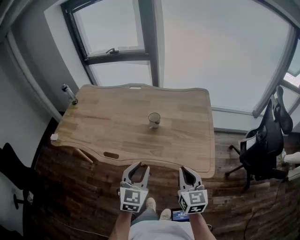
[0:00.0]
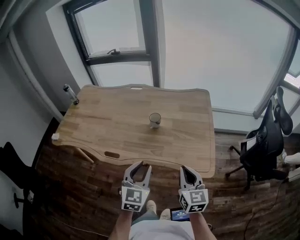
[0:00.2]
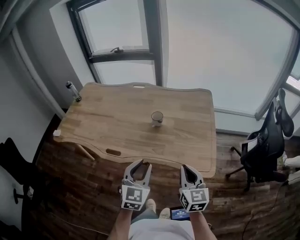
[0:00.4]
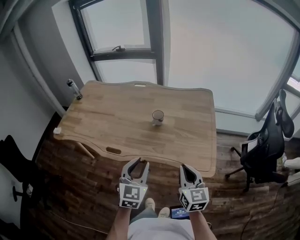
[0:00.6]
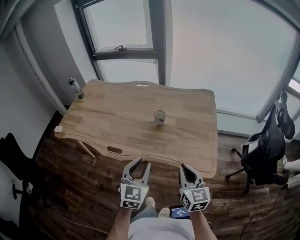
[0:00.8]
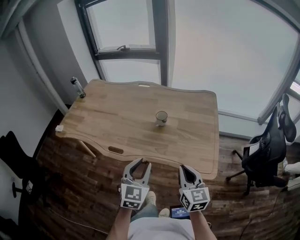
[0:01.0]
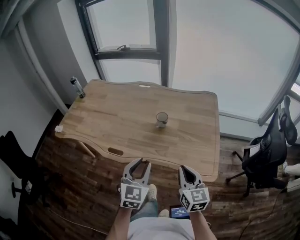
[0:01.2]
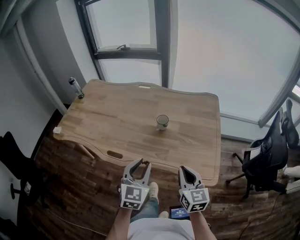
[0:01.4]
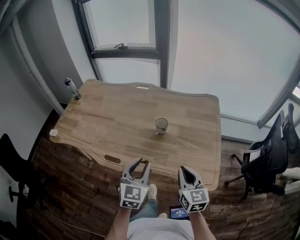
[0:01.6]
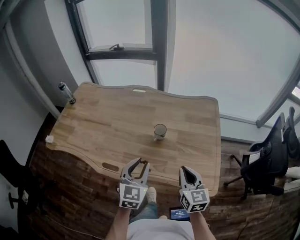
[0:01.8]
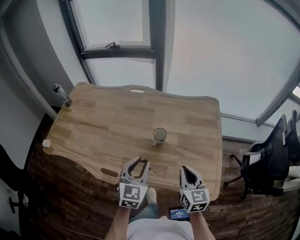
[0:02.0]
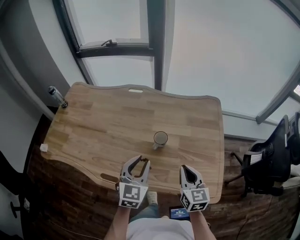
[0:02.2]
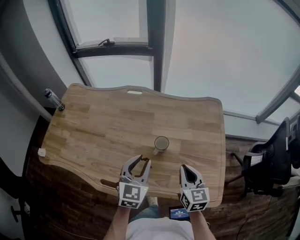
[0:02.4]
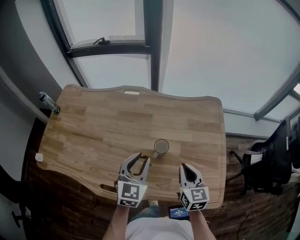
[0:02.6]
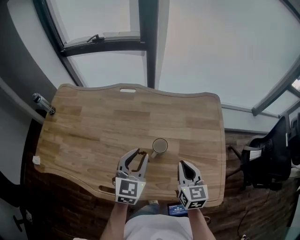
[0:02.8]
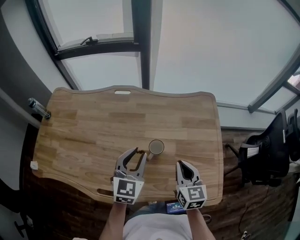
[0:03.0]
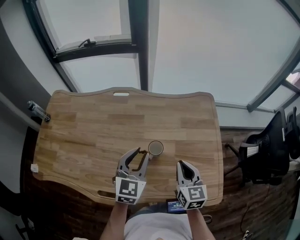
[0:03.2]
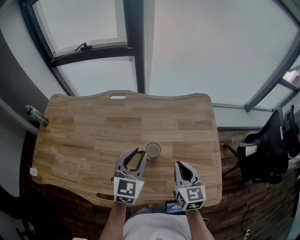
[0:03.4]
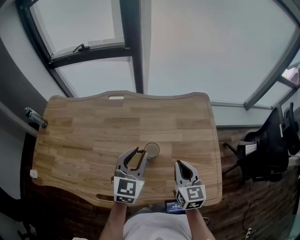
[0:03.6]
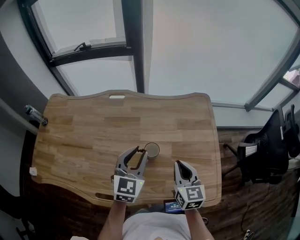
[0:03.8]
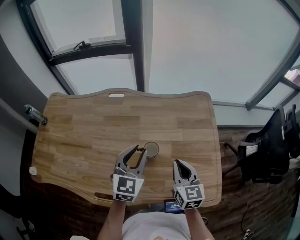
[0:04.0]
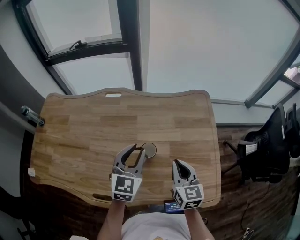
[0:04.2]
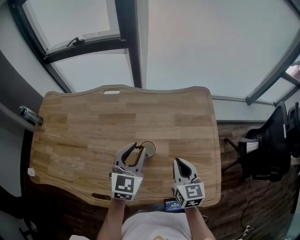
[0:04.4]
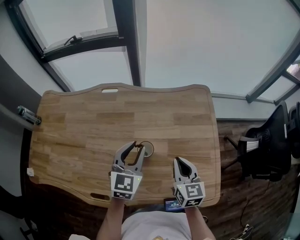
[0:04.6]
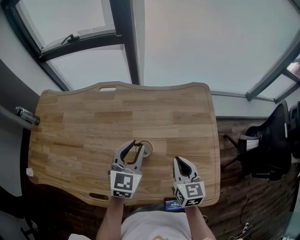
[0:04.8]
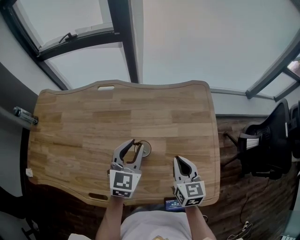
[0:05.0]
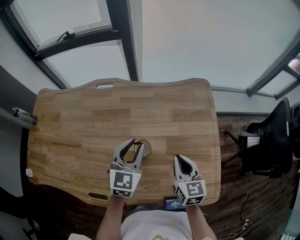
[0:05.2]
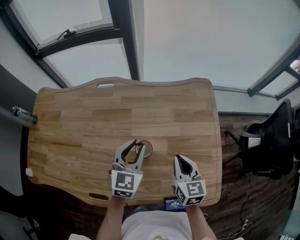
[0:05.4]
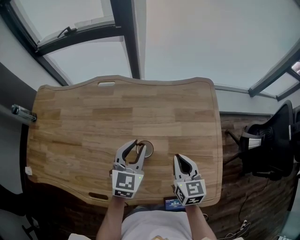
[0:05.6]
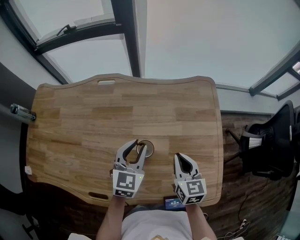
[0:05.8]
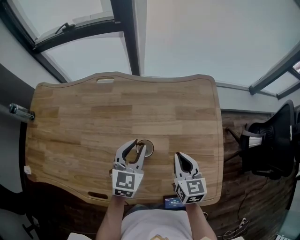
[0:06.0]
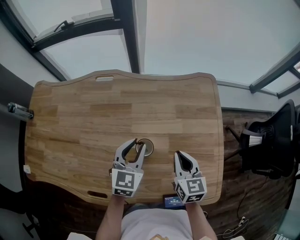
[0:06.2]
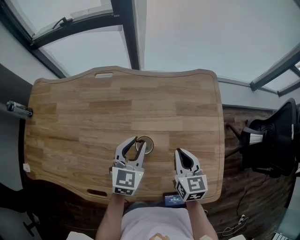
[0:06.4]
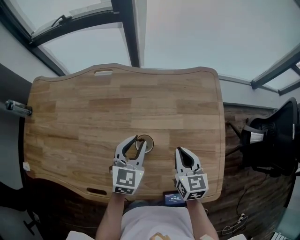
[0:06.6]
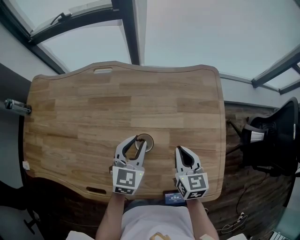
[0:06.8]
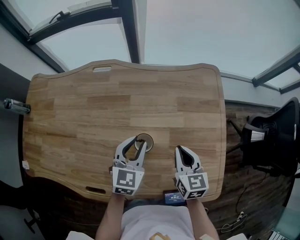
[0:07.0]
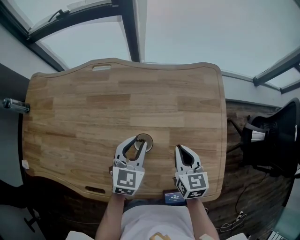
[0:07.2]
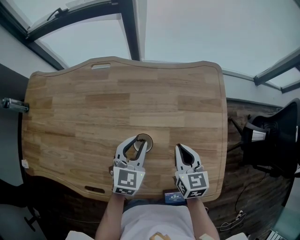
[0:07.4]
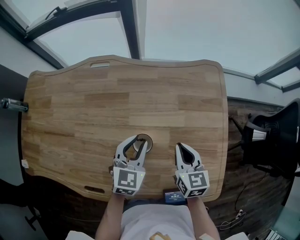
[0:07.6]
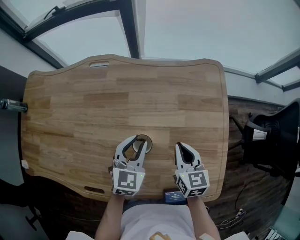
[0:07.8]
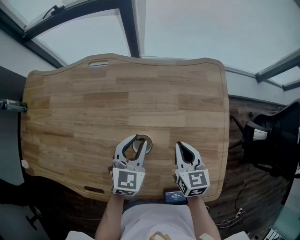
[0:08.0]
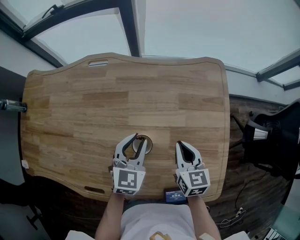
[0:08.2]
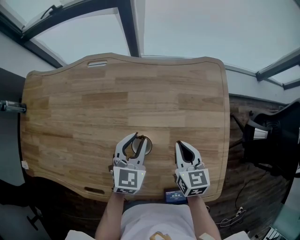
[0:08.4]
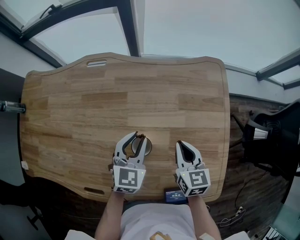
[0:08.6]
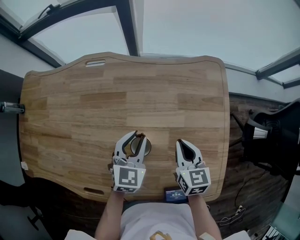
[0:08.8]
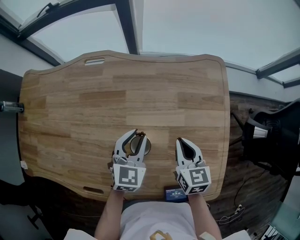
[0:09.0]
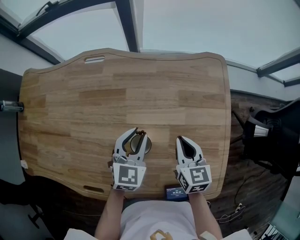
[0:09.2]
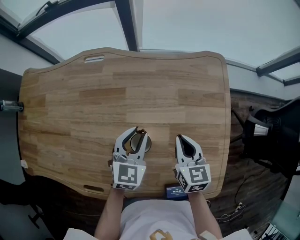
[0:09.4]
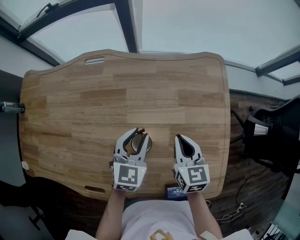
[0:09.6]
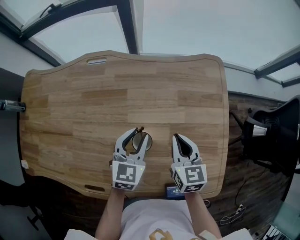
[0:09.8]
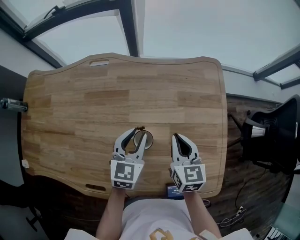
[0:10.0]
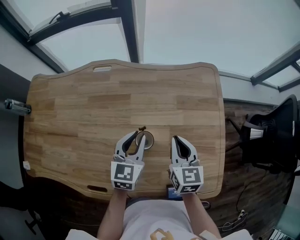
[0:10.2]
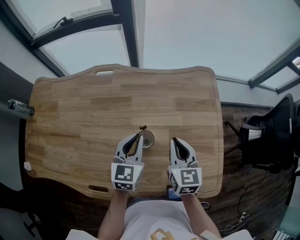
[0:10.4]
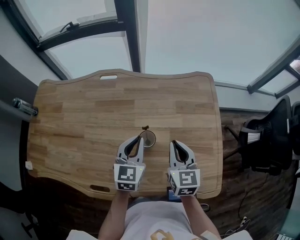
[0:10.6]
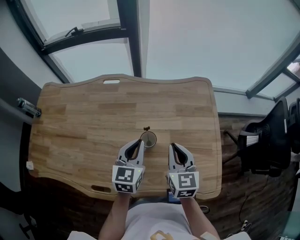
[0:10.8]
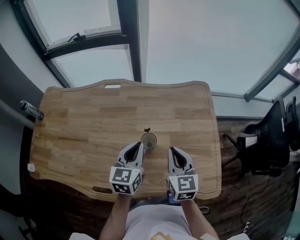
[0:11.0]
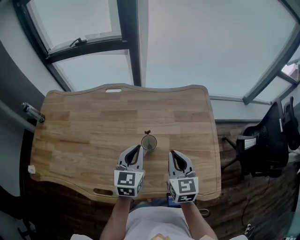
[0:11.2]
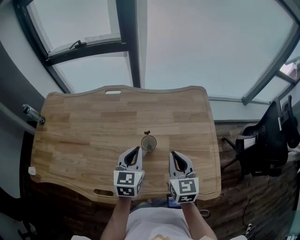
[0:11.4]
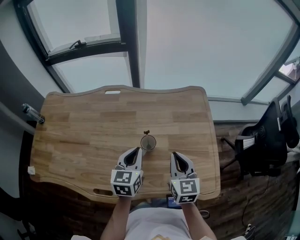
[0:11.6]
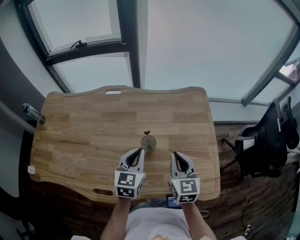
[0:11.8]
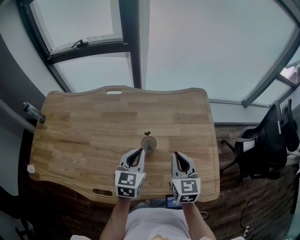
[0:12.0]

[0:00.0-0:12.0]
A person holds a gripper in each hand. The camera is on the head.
0:00.0 to 0:01.6: The two grippers go about 5 cm forward.
0:01.6 to 0:03.0: The grippers both shift forward by approximately 25 cm.
0:03.0 to 0:04.4: The left gripper moves roughly 5 cm.
0:04.4 to 0:06.0: The right gripper shifts by about 5 cm. Meanwhile the left gripper shifts roughly 5 cm downward.
0:06.0 to 0:07.6: The grippers move only a little.
0:07.6 to 0:09.0: The grippers make only small movements.
0:09.0 to 0:10.4: The two grippers go about 5 cm upward. The left gripper closes up.
0:10.4 to 0:12.0: The right gripper goes some 10 cm backward and upward; the left gripper goes about 5 cm backward.

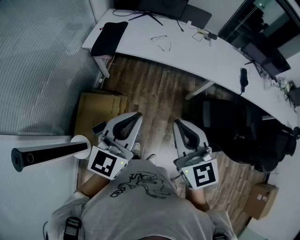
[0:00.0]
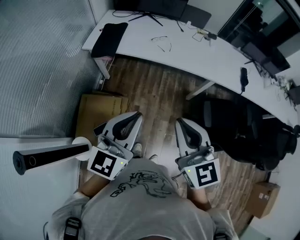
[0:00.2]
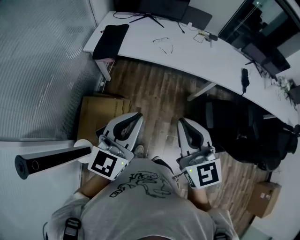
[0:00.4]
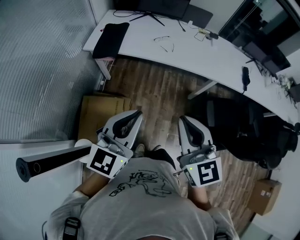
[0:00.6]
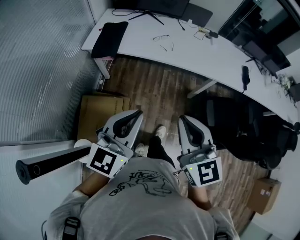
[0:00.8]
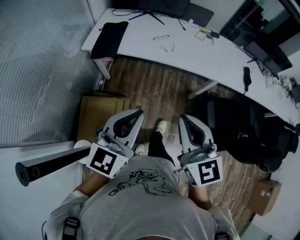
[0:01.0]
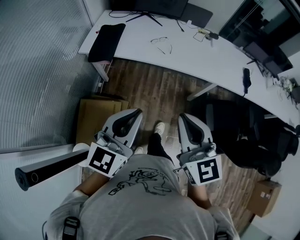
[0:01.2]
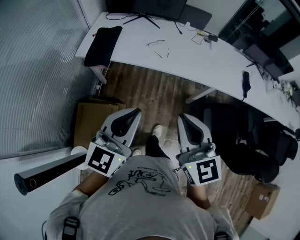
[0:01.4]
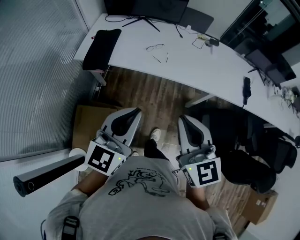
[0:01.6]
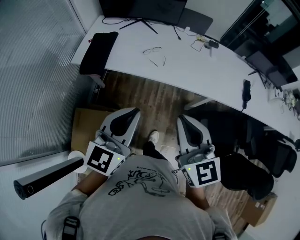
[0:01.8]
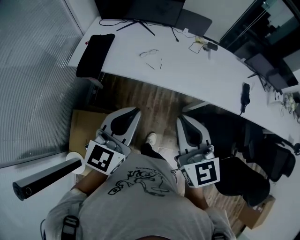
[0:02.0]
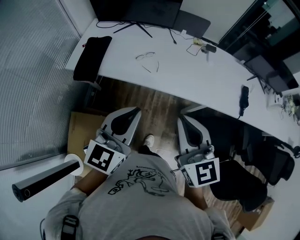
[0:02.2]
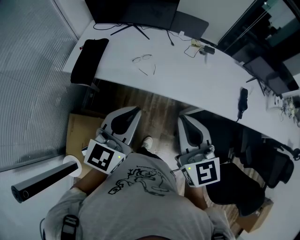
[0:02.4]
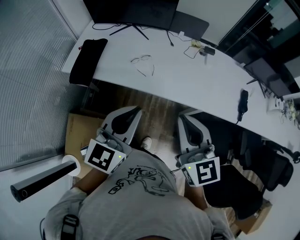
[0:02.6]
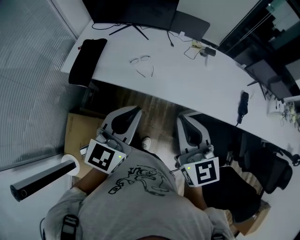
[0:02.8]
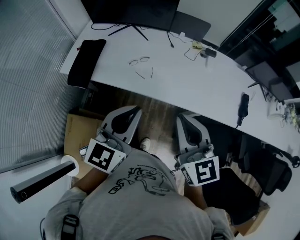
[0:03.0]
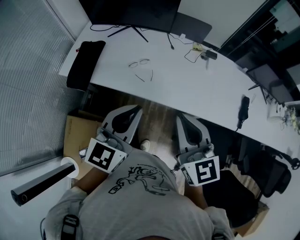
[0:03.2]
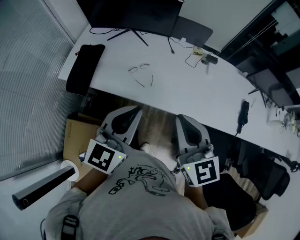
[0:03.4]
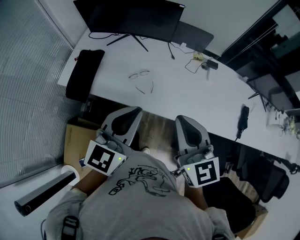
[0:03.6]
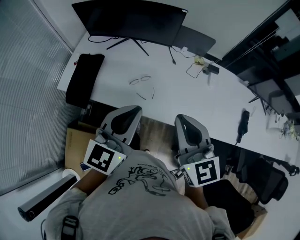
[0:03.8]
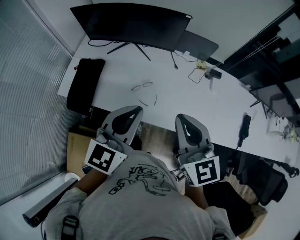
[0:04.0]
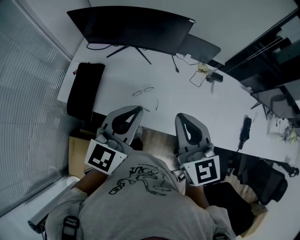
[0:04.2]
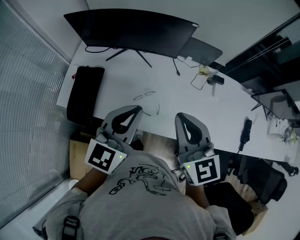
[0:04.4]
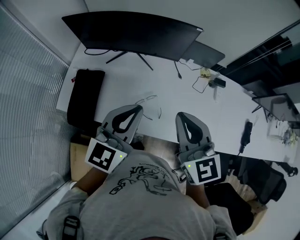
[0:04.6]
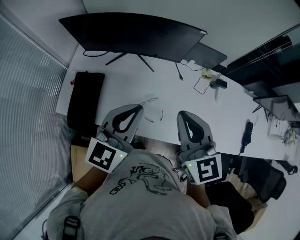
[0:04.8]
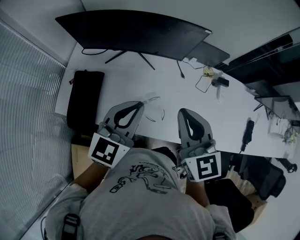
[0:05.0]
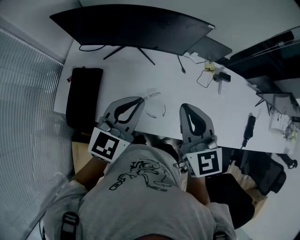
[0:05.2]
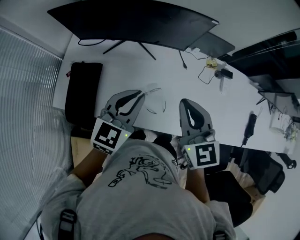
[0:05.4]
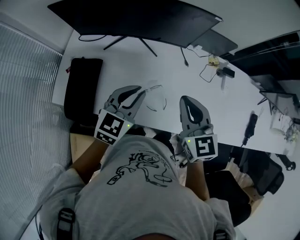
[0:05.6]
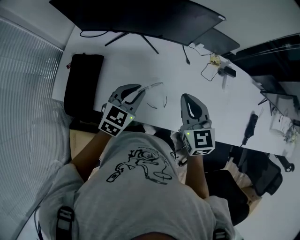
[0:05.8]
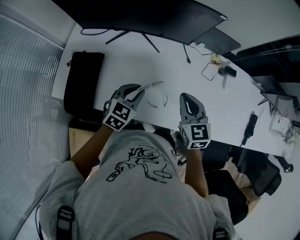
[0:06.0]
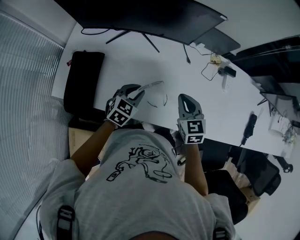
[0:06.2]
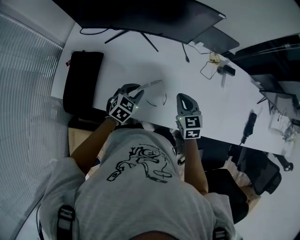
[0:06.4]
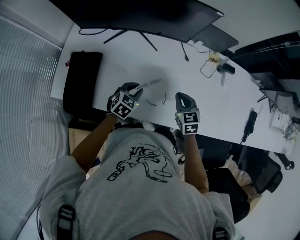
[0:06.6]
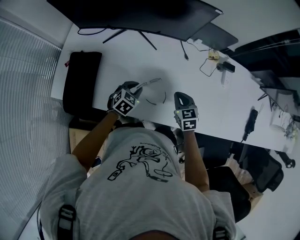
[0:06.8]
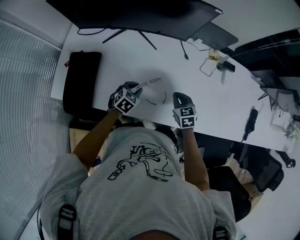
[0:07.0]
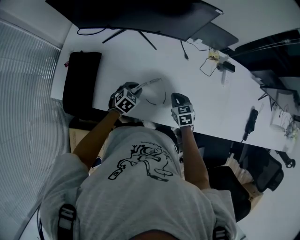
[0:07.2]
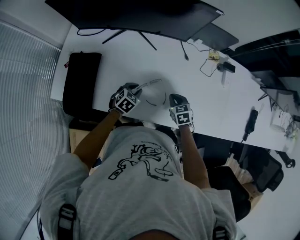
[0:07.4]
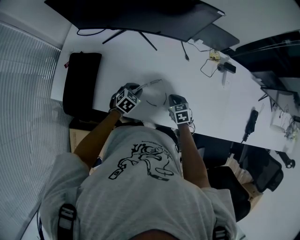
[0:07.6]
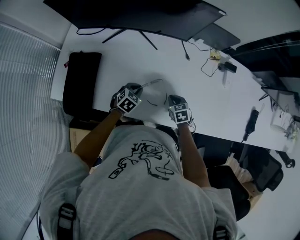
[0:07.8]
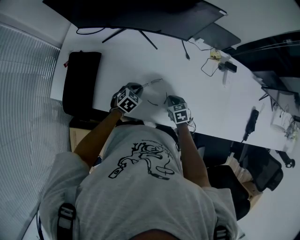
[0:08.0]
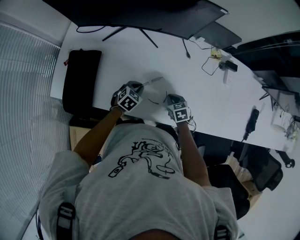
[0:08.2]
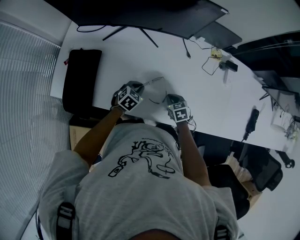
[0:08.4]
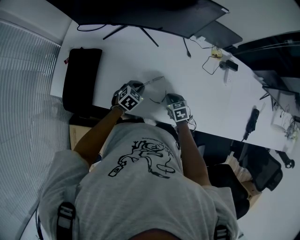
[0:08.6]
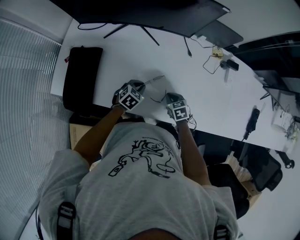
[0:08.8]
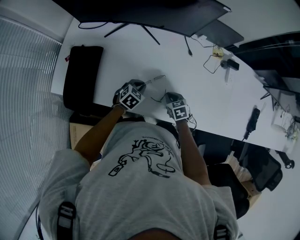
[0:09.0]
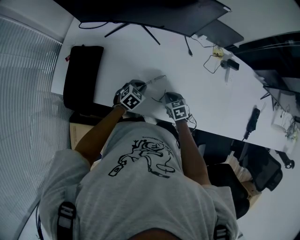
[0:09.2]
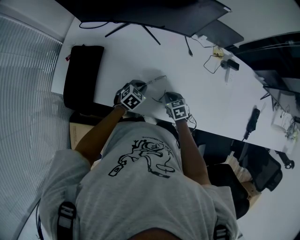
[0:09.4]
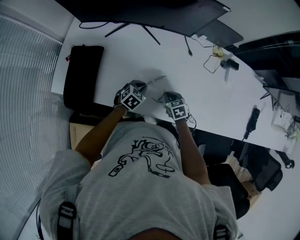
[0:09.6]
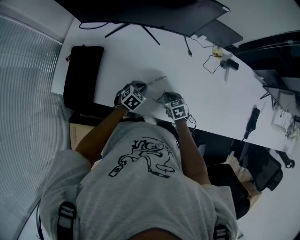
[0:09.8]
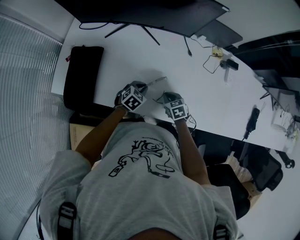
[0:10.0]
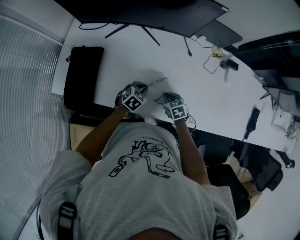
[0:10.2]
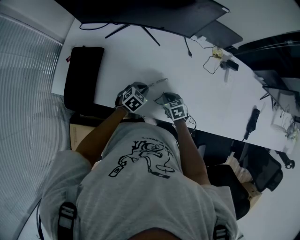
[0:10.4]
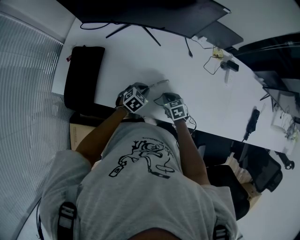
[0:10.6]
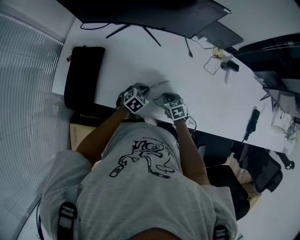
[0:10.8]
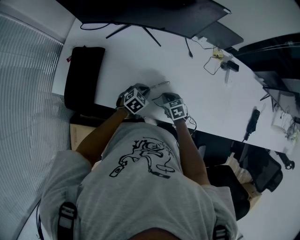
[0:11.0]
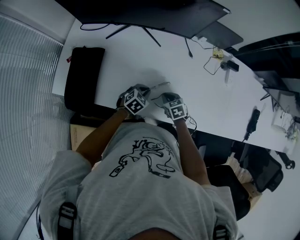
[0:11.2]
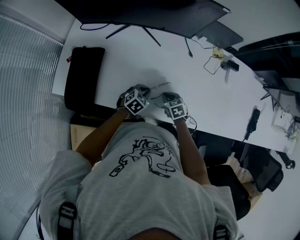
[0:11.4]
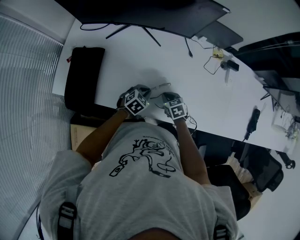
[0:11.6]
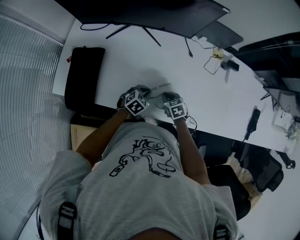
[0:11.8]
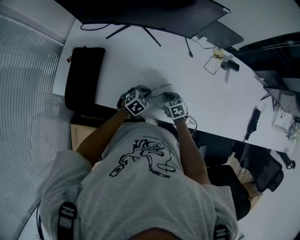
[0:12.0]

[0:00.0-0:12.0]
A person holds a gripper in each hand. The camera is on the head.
0:00.0 to 0:01.6: The two grippers go approximately 20 cm forward.
0:01.6 to 0:03.0: Both grippers move forward and to the right, approximately 25 cm.
0:03.0 to 0:04.4: Both grippers travel together forward, about 30 cm.
0:04.4 to 0:06.0: The right gripper goes some 25 cm downward and forward, and turns by about 20 degrees. The left gripper is displaced downward by about 25 cm, and angles its fingers downward, by about 30 degrees.
0:06.0 to 0:07.6: Both grippers travel together downward, approximately 20 cm. The right gripper swivels roughly 30 degrees.
0:07.6 to 0:12.0: The grippers stay close to where they were, moving slightly.
